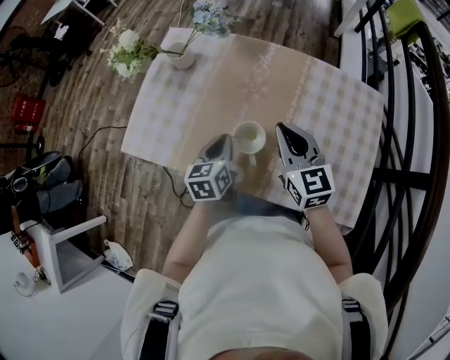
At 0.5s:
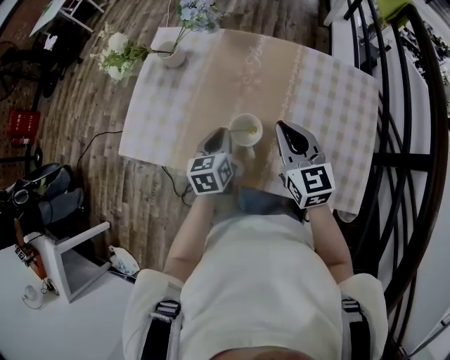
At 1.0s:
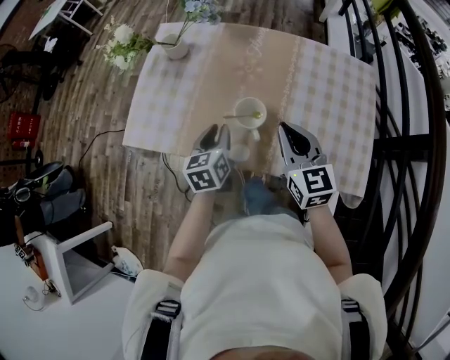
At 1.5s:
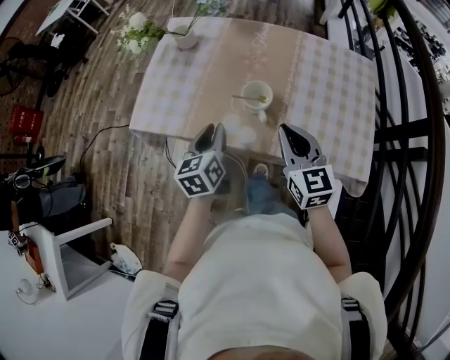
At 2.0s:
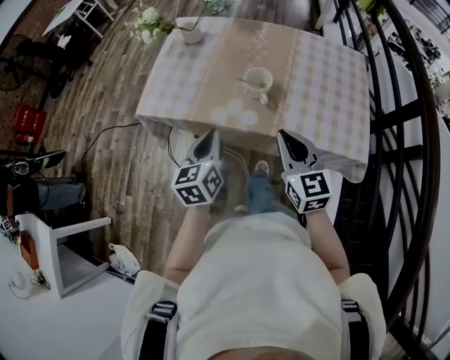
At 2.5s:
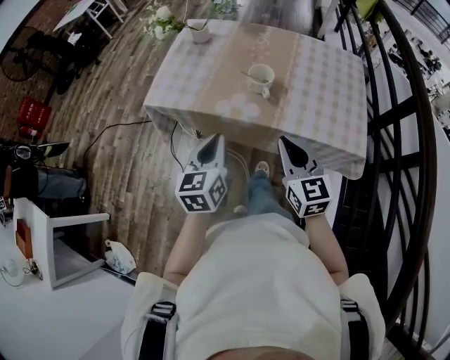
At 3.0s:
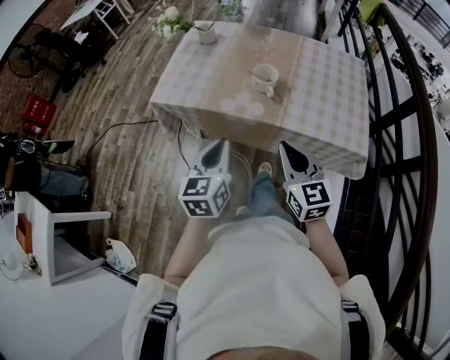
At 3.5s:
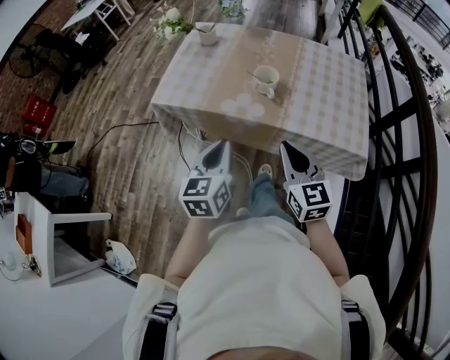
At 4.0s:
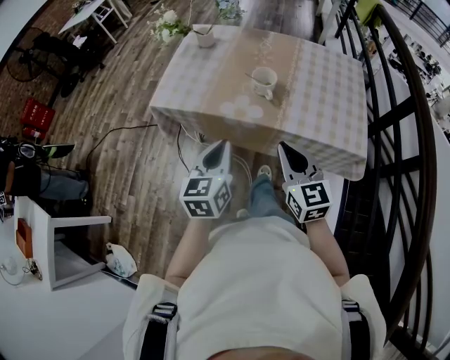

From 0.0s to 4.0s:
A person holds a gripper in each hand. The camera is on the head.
From 0.0s to 2.0s: The left gripper moves backward, upward and to the left, about 20 cm; the right gripper travels backward by approximately 20 cm.
From 2.0s to 4.0s: The two grippers go some 10 cm backward.

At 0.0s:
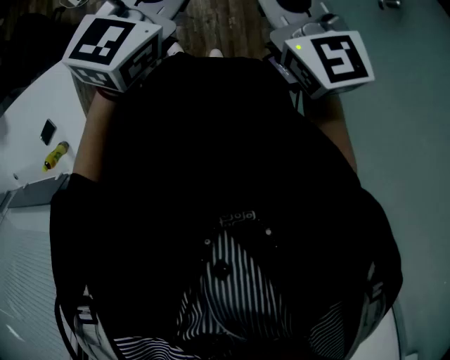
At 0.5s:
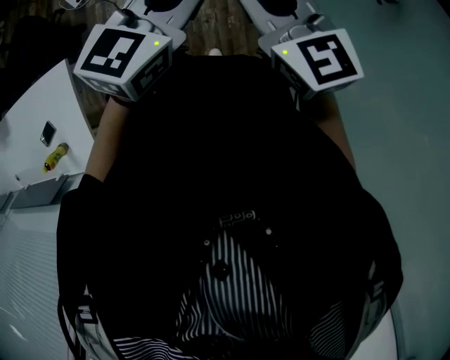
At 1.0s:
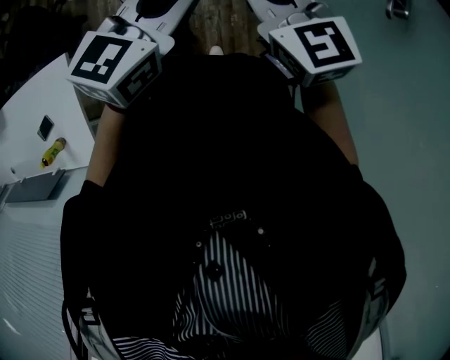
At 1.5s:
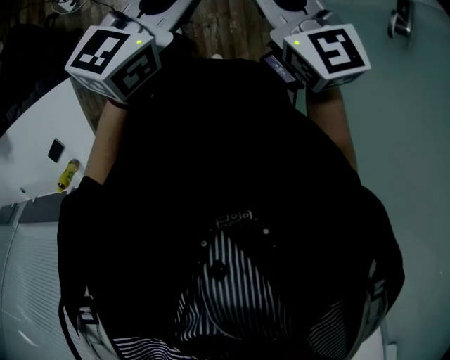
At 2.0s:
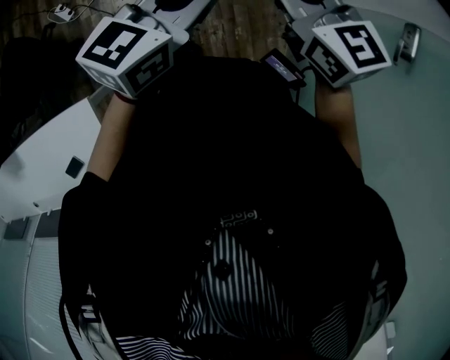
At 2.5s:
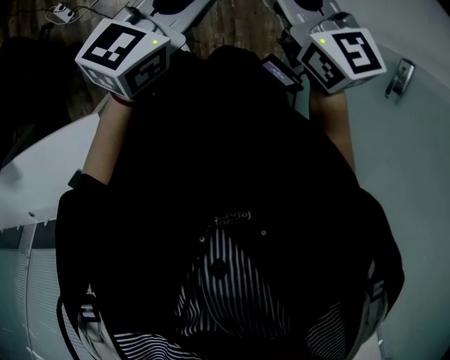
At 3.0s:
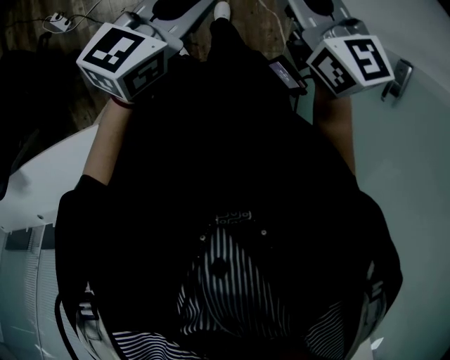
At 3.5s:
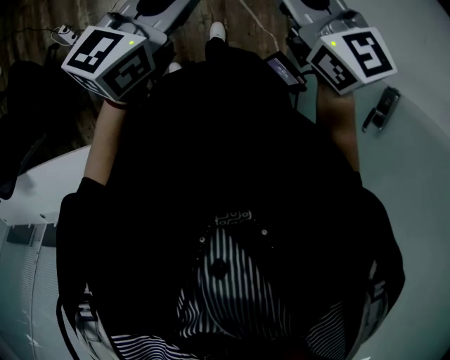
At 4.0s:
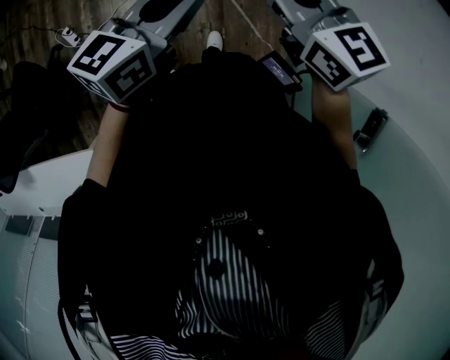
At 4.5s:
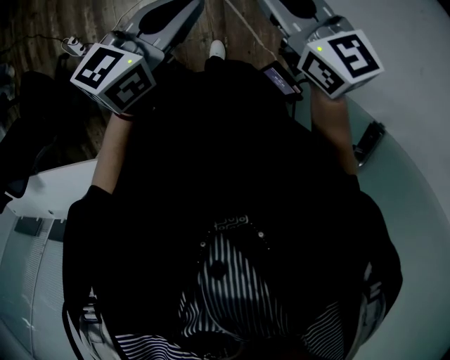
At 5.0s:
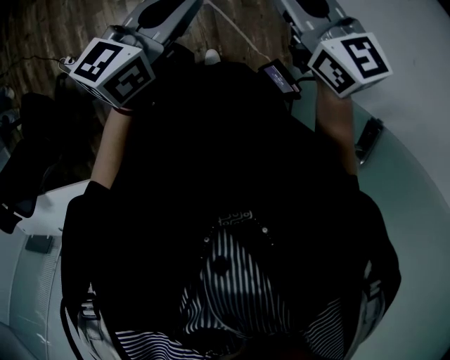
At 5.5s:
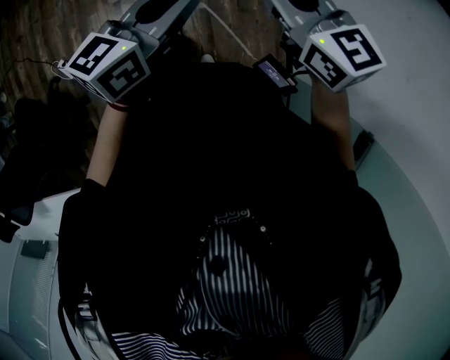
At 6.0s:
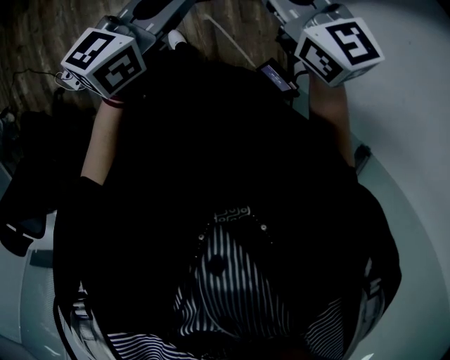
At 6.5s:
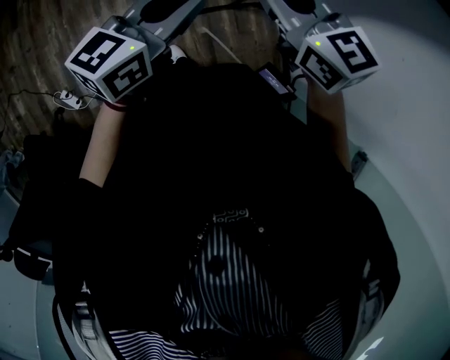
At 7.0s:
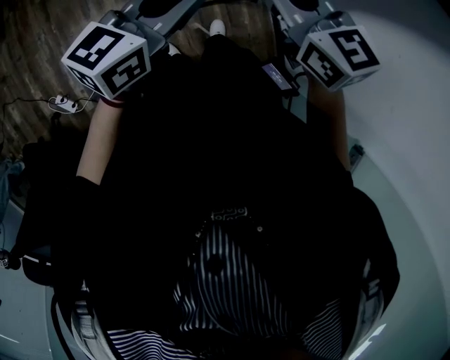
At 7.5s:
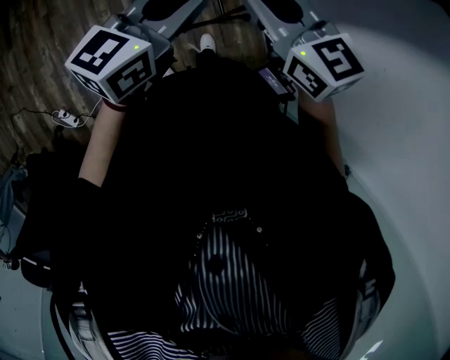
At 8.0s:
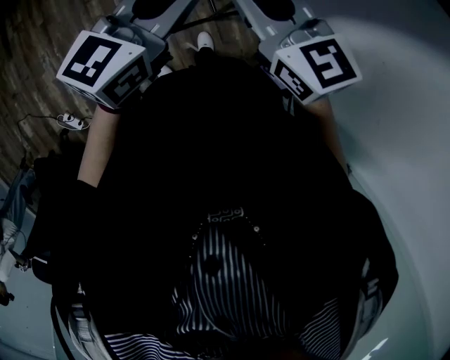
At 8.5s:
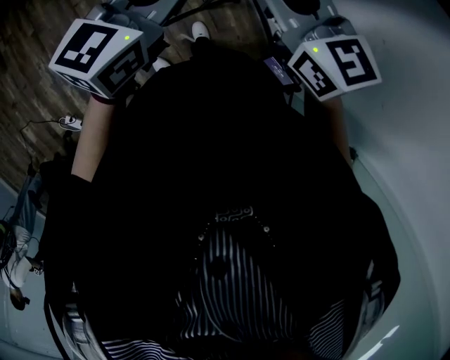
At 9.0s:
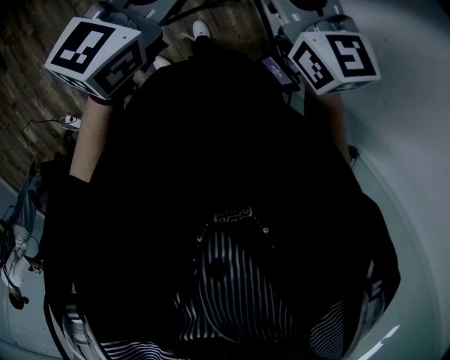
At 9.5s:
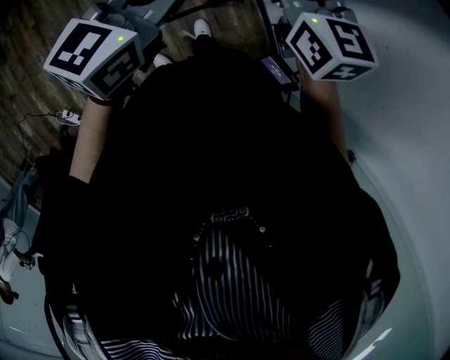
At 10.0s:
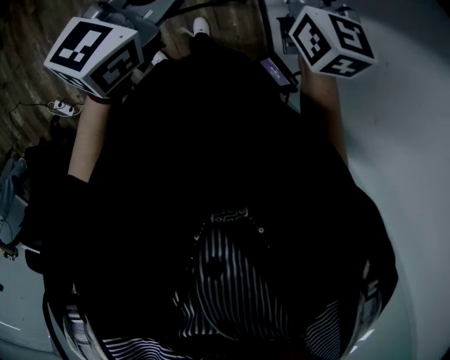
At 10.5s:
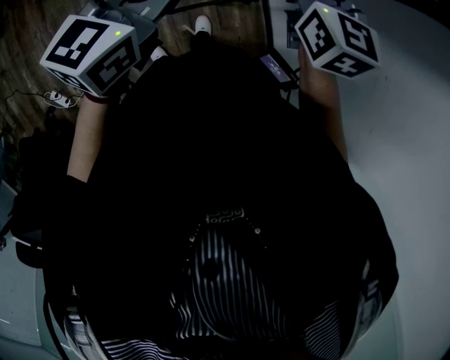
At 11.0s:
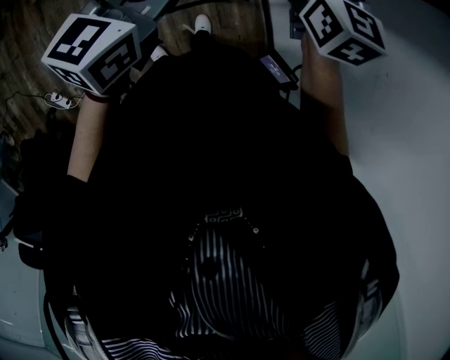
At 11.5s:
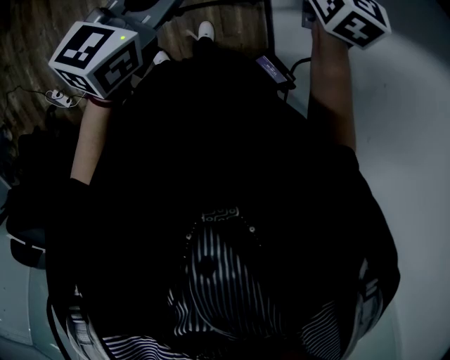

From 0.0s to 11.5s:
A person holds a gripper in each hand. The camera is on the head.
From 0.0s to 2.0s: The grippers stay close to where they were, moving slightly.
From 2.0s to 4.0s: The right gripper changes place by roughly 35 cm, and swivels some 40 degrees. Meanwhile the left gripper shifts by about 40 cm, and changes its angle by roughly 30 degrees.
From 4.0s to 6.0s: Both grippers move forward, roughly 25 cm.
From 6.0s to 7.5s: Both grippers move forward, roughly 15 cm.
From 7.5s to 9.5s: The right gripper travels to the right and forward by roughly 15 cm, swivels approximately 20 degrees, and opens its fingers, while the left gripper ends up roughly 5 cm from where it was.
From 9.5s to 11.5s: The right gripper goes some 10 cm forward, and closes its fingers.

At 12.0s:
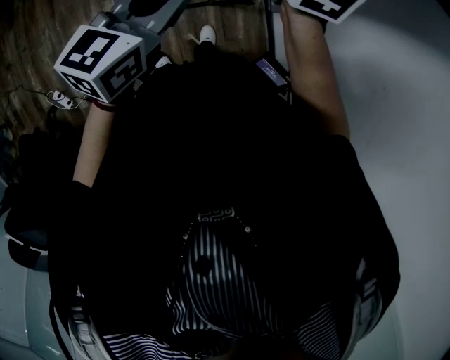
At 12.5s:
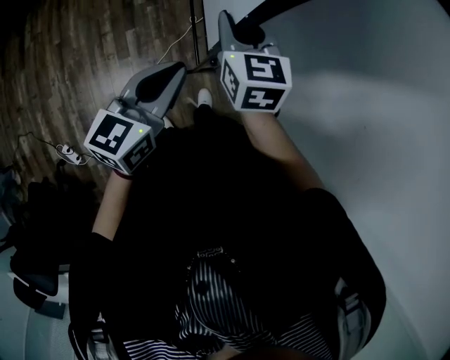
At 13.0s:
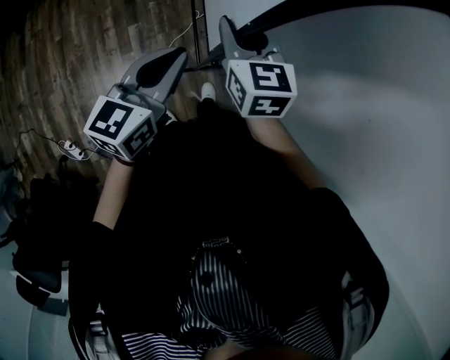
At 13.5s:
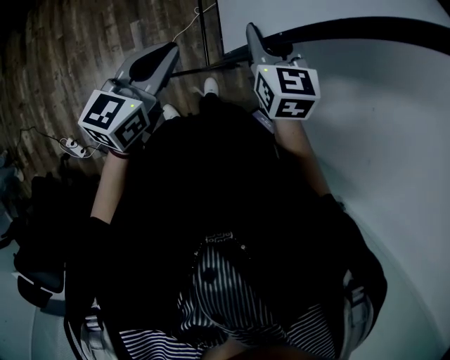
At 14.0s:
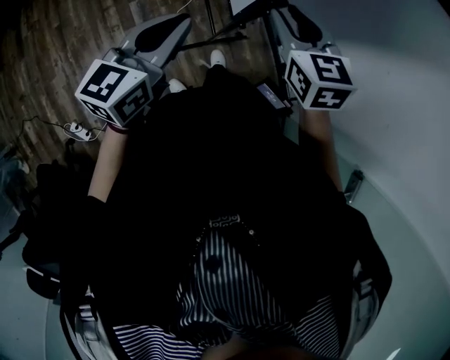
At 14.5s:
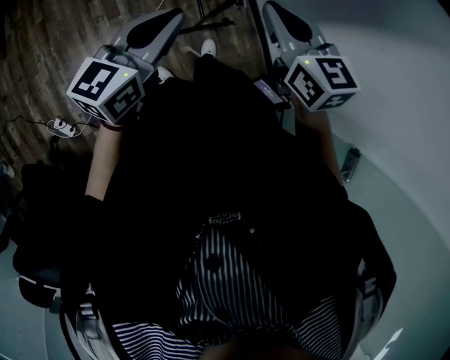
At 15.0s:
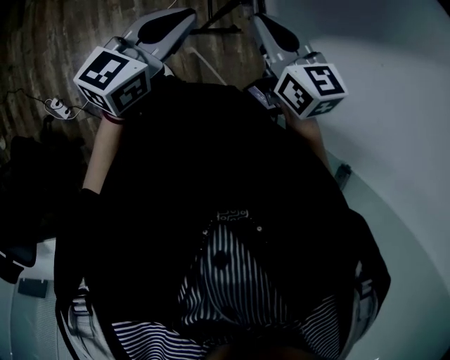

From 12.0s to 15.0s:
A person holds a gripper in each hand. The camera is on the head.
From 12.0s to 13.5s: The left gripper shifts approximately 10 cm to the left. The right gripper moves backward, some 10 cm.
From 13.5s to 15.0s: The two grippers go about 20 cm backward. The right gripper closes up.

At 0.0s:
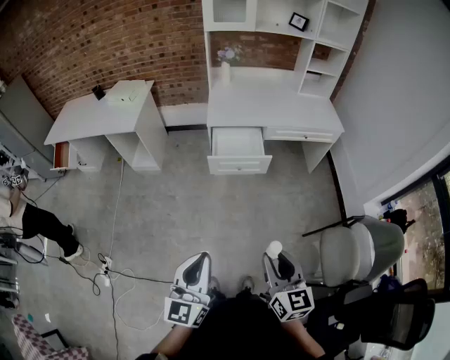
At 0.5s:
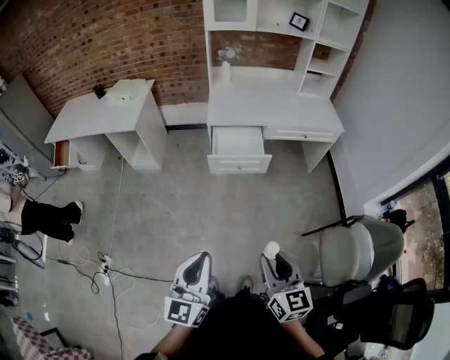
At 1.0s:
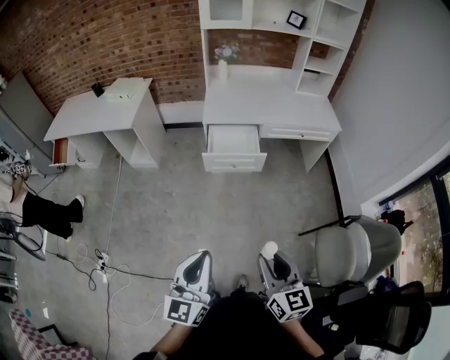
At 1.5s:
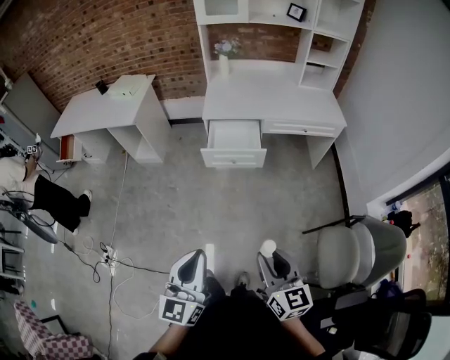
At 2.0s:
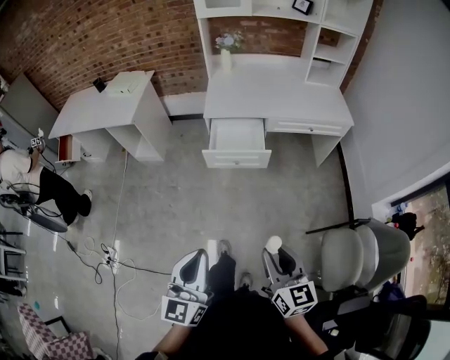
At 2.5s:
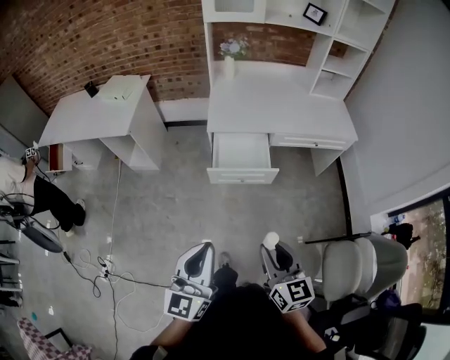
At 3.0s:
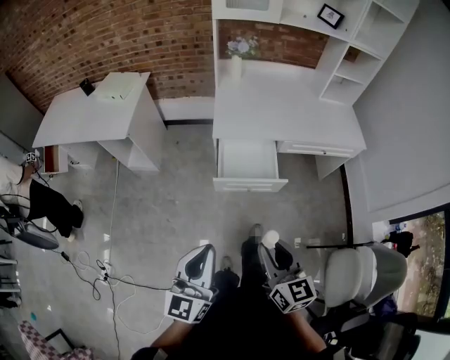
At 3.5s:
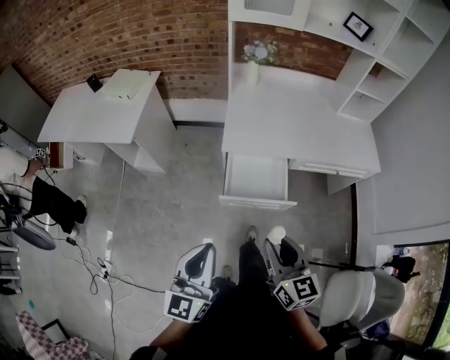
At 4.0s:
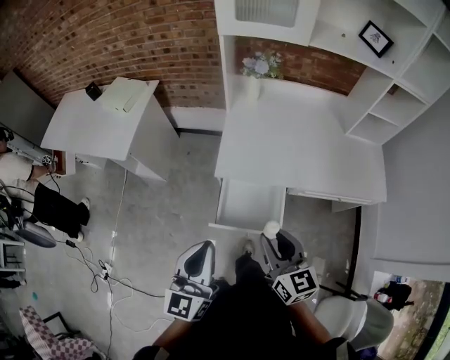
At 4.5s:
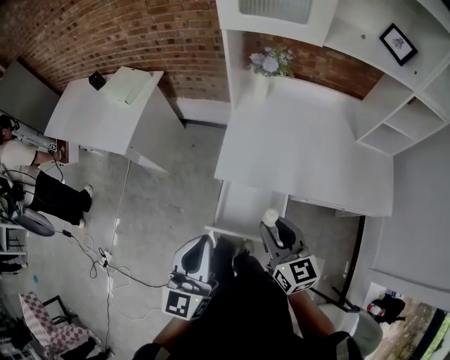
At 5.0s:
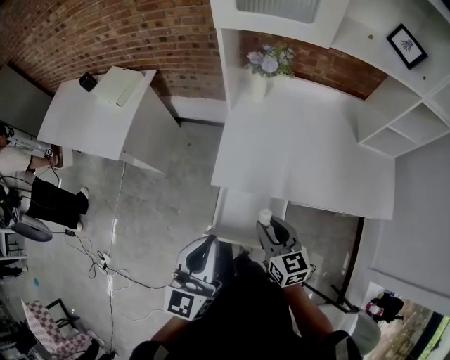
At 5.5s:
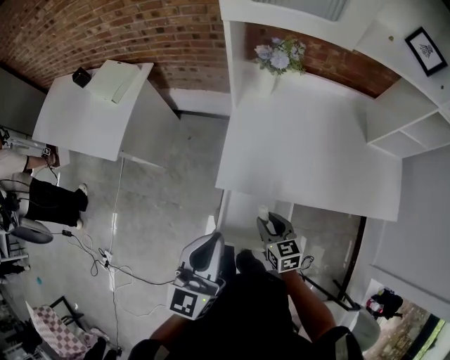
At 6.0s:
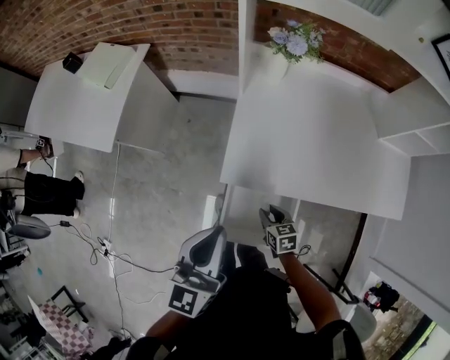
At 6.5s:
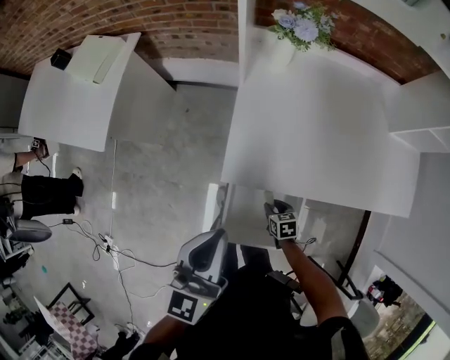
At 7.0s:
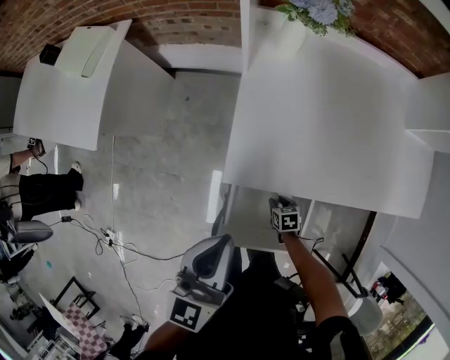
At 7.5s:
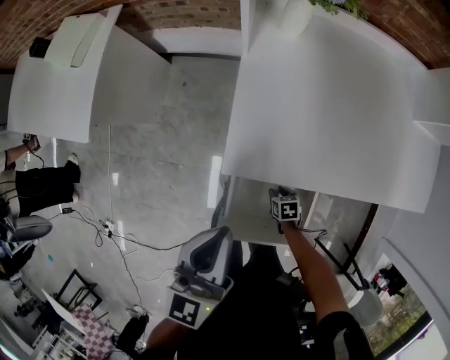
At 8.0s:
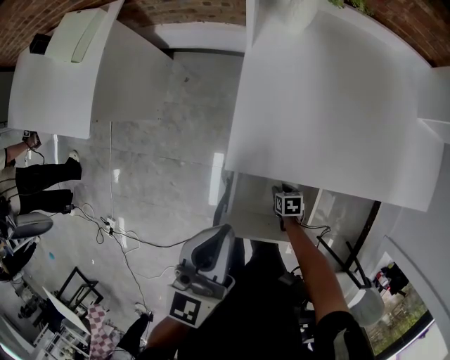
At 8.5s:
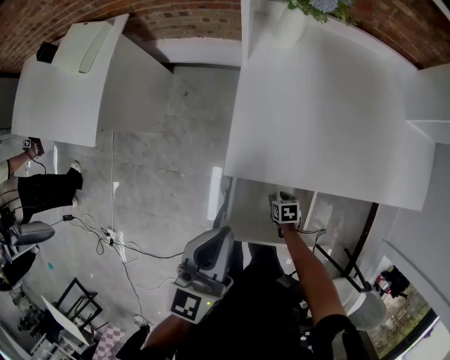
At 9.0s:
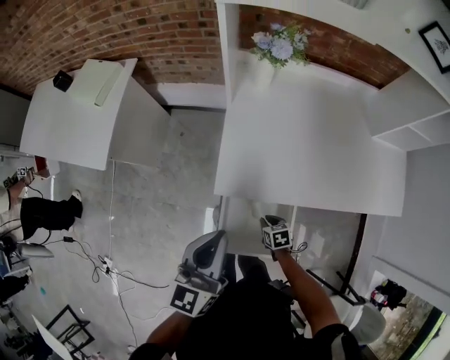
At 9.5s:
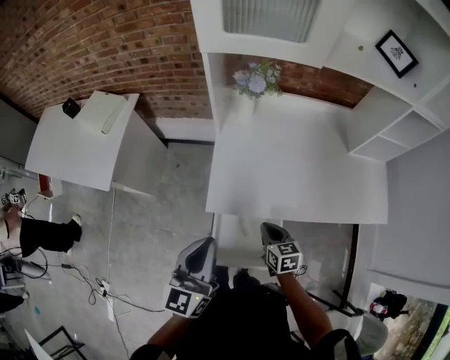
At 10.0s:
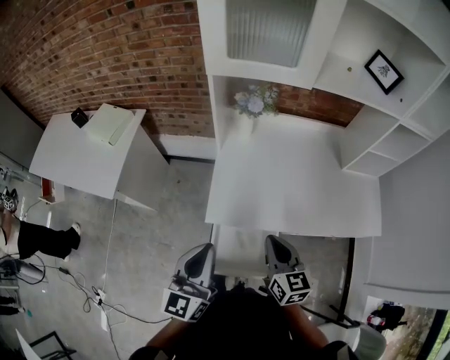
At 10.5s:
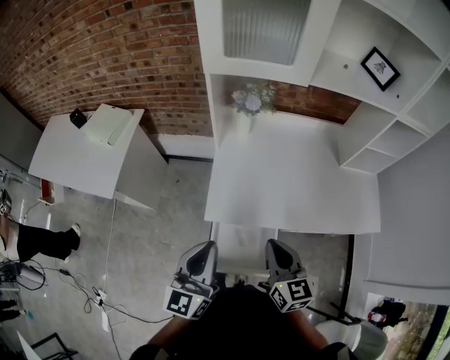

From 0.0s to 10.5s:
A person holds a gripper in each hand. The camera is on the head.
From 0.0s to 2.0s: The right gripper travels to the right and forward by about 10 cm; the left gripper goes approximately 10 cm to the right.
From 2.0s to 4.0s: Both grippers are carried forward, approximately 50 cm.
From 4.0s to 6.5s: The right gripper shifts roughly 50 cm downward and forward, and points its fingers approximately 50 degrees further downward. Meanwhile the left gripper travels forward by about 25 cm.
From 6.5s to 8.5s: The grippers both shift downward by some 10 cm.
From 8.5s to 10.5s: The left gripper travels upward and backward by approximately 15 cm. The right gripper goes roughly 50 cm upward, tips its fingers upward by roughly 60 degrees, and closes up.
